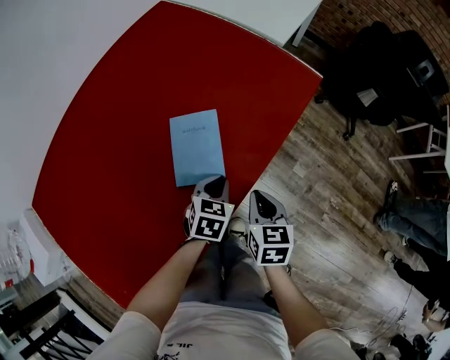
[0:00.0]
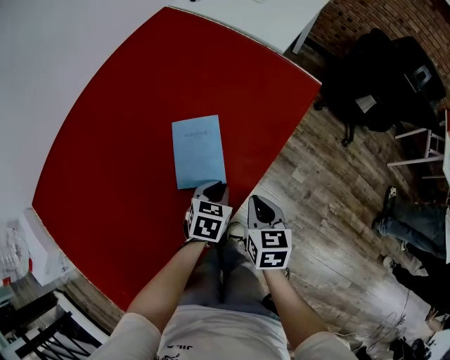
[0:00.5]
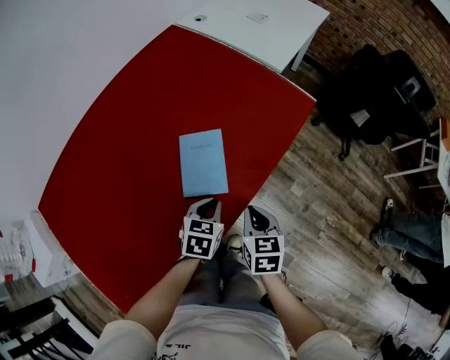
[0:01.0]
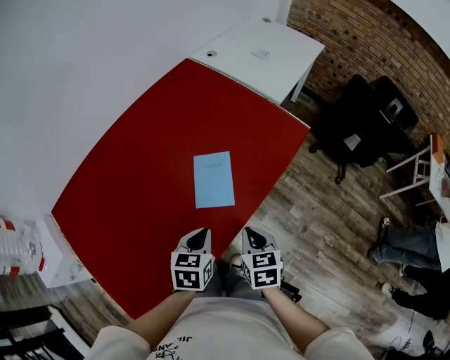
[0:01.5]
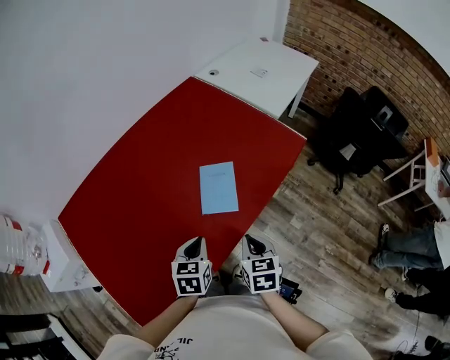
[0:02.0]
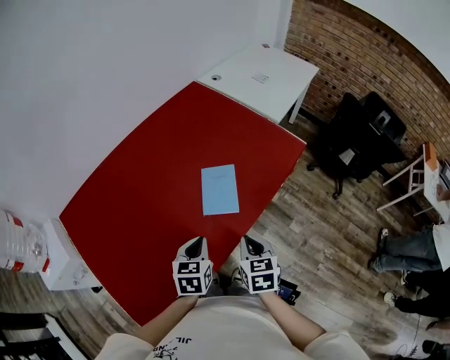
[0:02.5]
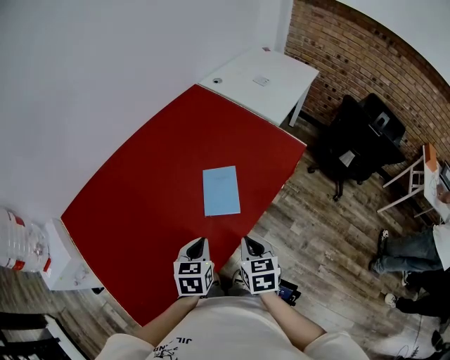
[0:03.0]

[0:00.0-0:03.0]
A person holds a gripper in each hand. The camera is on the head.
0:00.0 to 0:01.5: The right gripper shifts some 10 cm upward and backward. The left gripper goes roughly 20 cm upward, backward and to the left.
0:01.5 to 0:03.0: The right gripper changes place by some 5 cm. Meanwhile the left gripper changes place by some 5 cm.

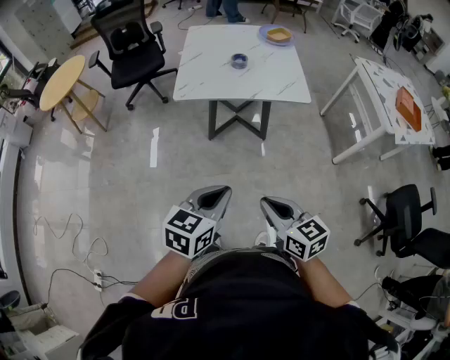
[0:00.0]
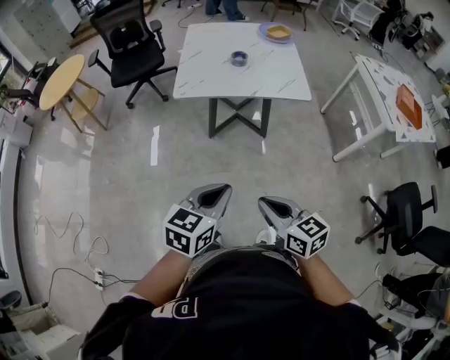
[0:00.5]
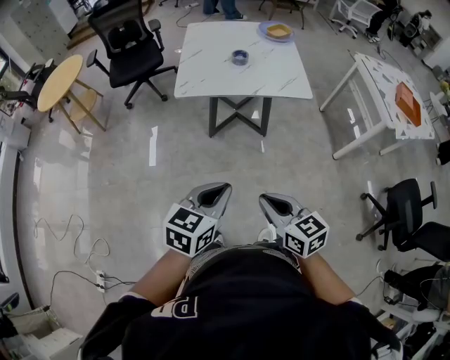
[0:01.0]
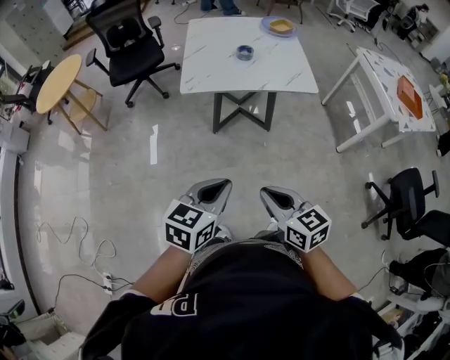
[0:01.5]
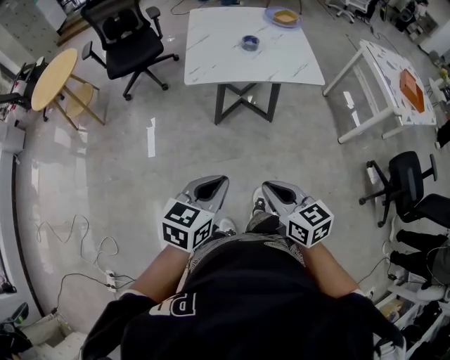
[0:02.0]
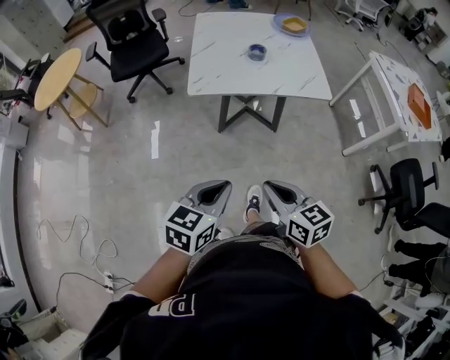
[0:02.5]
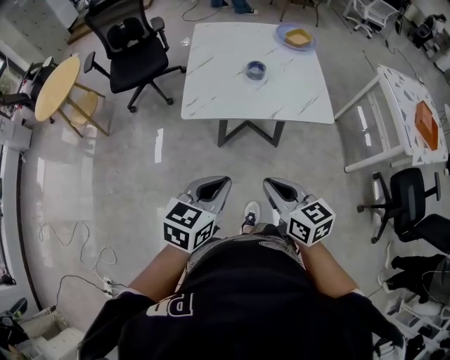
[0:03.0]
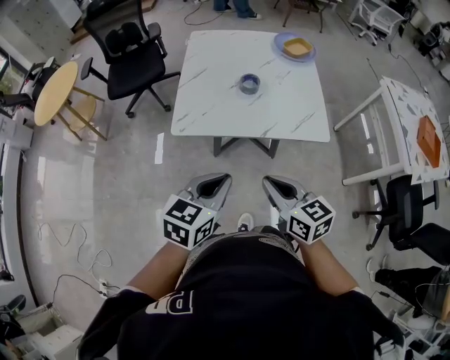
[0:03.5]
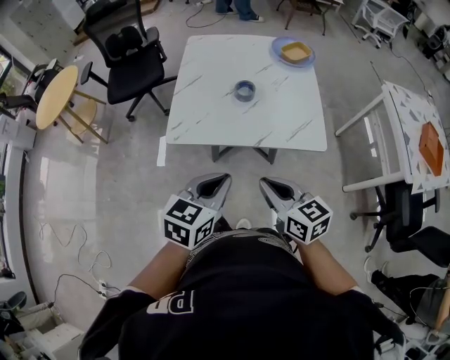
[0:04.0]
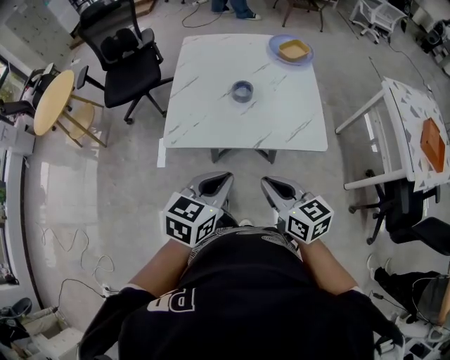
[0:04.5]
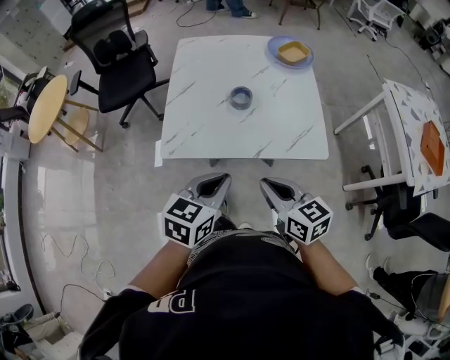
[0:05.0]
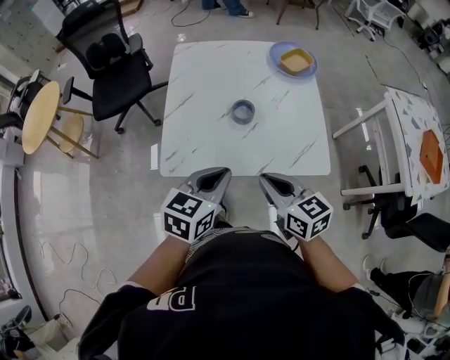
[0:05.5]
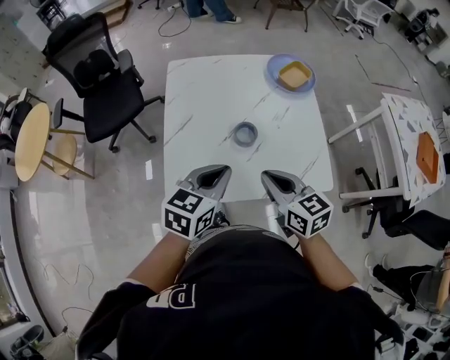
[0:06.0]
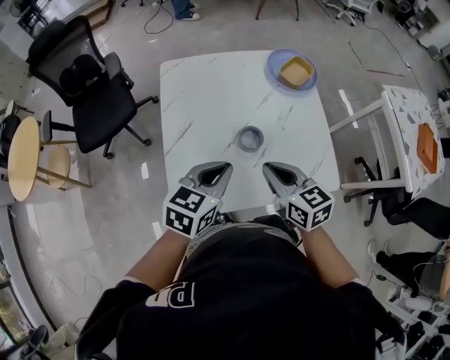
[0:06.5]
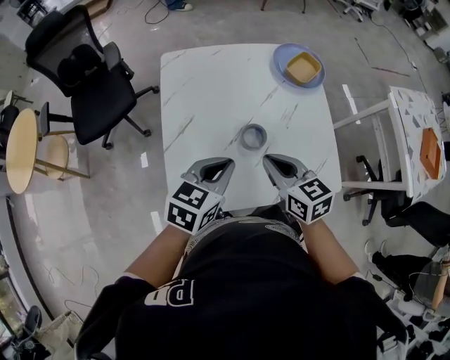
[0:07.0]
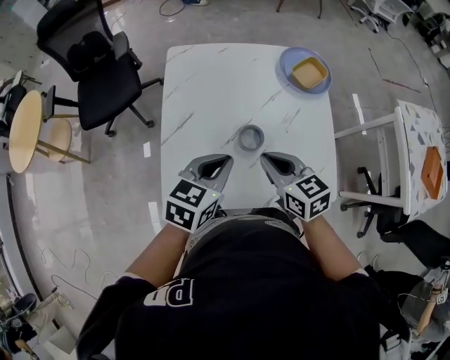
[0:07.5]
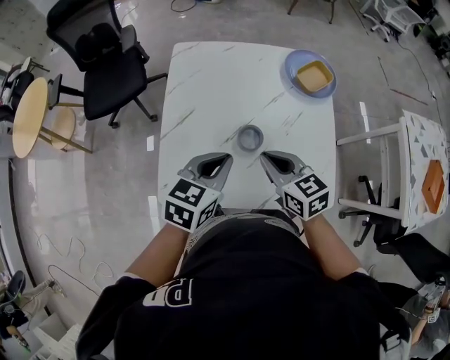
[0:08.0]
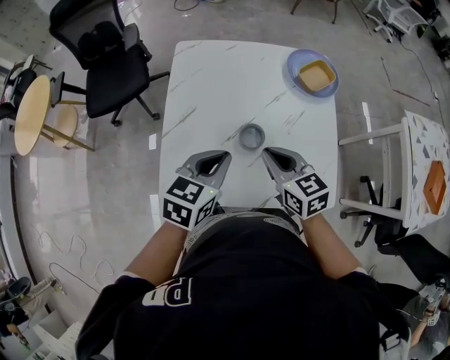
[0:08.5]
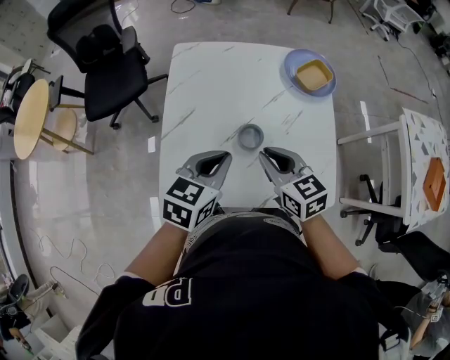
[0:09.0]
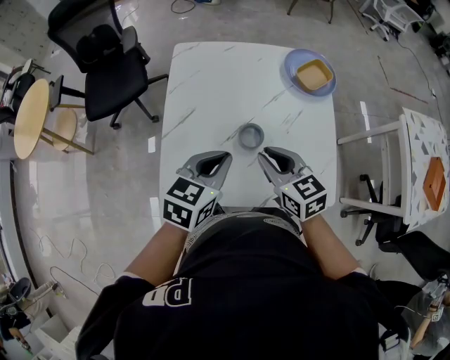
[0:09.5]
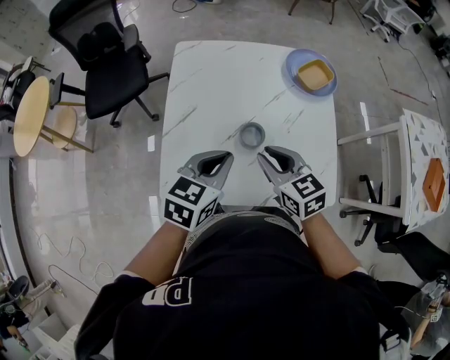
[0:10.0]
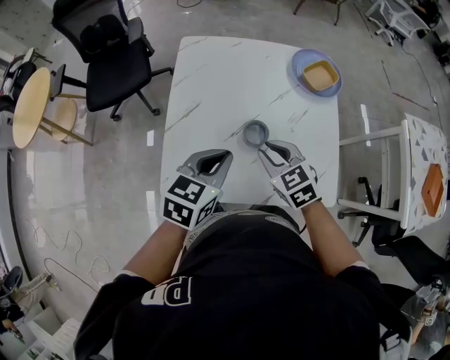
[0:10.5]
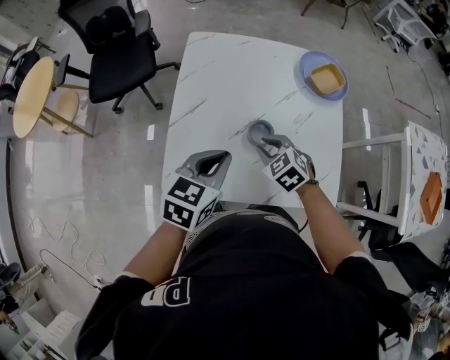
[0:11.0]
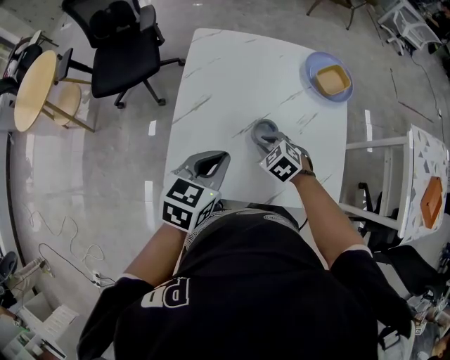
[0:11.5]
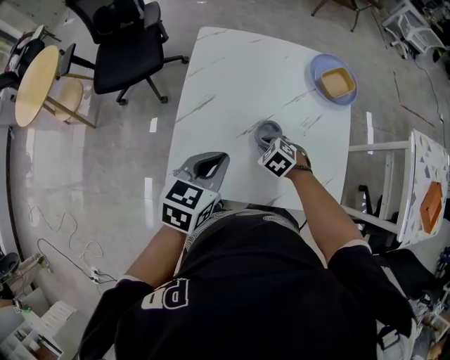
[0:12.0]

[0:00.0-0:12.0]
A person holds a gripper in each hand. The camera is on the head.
0:00.0 to 0:02.0: Both grippers travel together to the left, roughly 10 cm.
0:02.0 to 0:04.0: The left gripper is displaced forward and to the right by approximately 35 cm, while the right gripper travels forward by some 30 cm.
0:04.0 to 0:06.0: The two grippers go about 25 cm forward.
0:06.0 to 0:08.0: The grippers both shift forward by some 10 cm.
0:08.0 to 0:10.0: Both grippers stay about where they are.
0:10.0 to 0:12.0: The right gripper heads downward, covering roughly 20 cm, and tilts its fingers some 40 degrees downward. Meanwhile the left gripper heads to the left, covering roughly 5 cm.

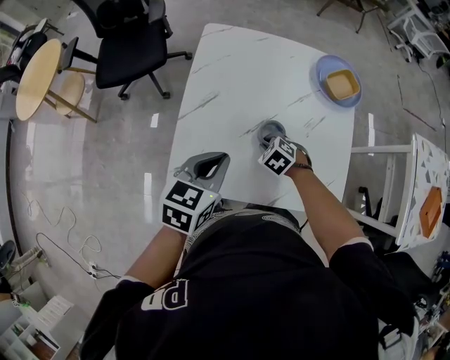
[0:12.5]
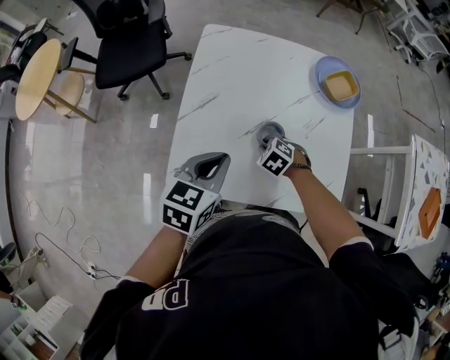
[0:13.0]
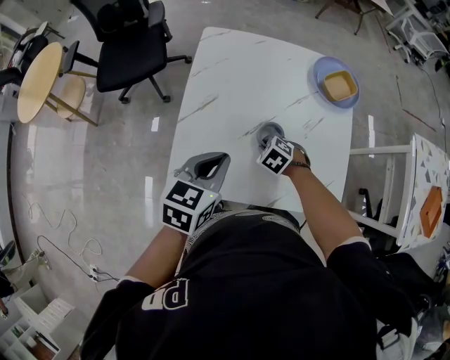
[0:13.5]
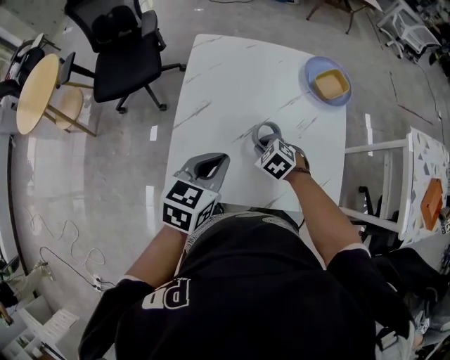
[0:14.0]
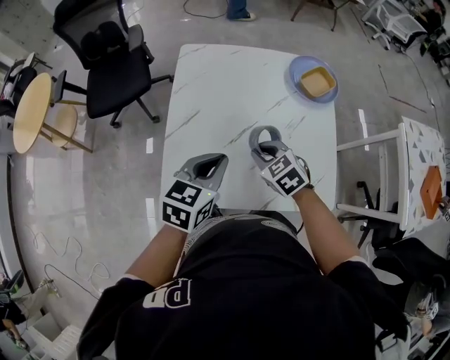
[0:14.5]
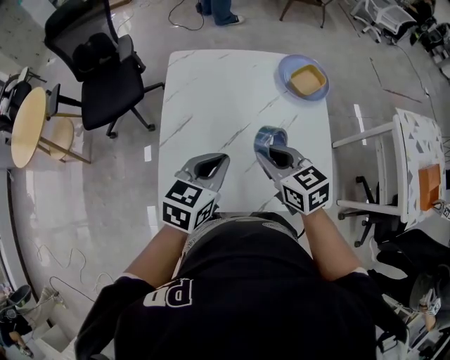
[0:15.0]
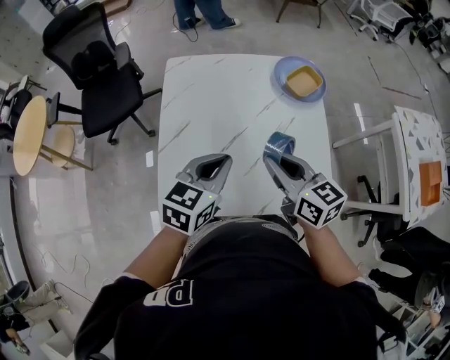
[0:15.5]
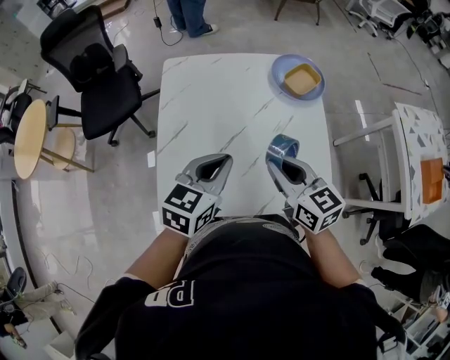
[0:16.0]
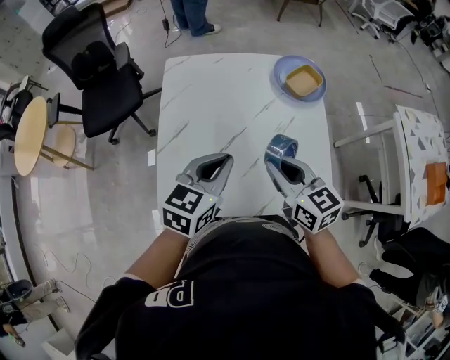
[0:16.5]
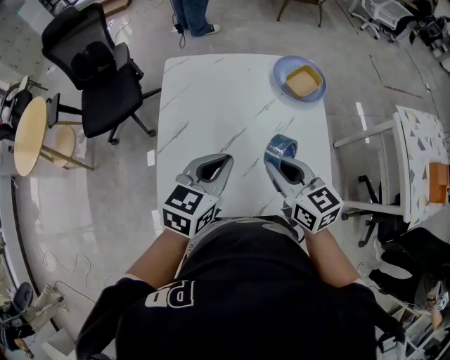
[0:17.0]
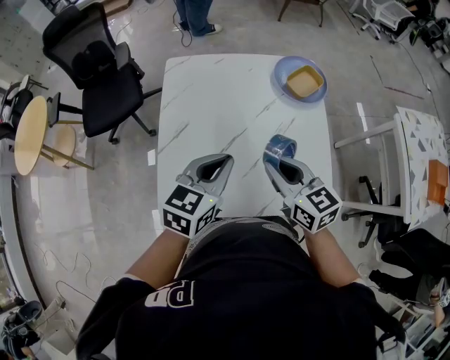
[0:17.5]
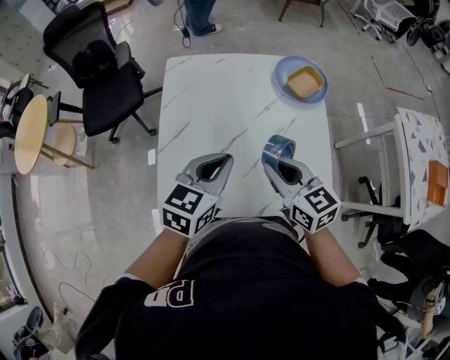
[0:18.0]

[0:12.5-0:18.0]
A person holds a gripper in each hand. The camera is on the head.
0:12.5 to 0:14.5: The right gripper moves upward, about 15 cm, and changes its angle by approximately 20 degrees.
0:14.5 to 0:16.0: The right gripper travels upward and to the right by roughly 15 cm, and points its fingers some 30 degrees further upward, while the left gripper shifts some 5 cm to the right.
0:16.0 to 0:18.0: The grippers stay close to where they were, moving slightly.

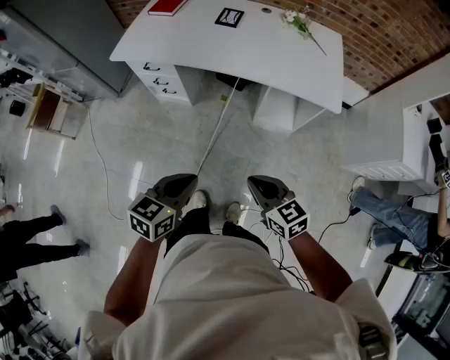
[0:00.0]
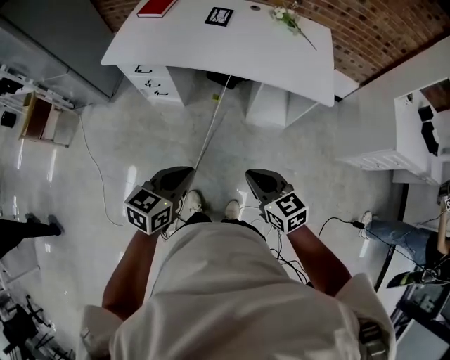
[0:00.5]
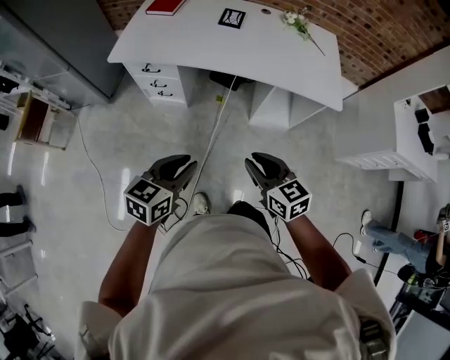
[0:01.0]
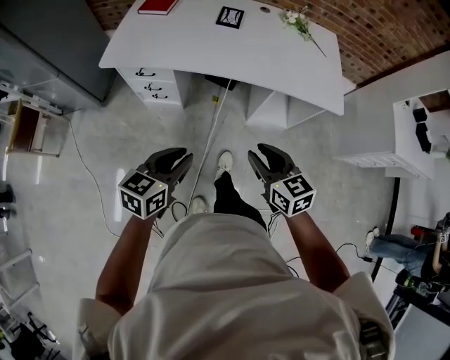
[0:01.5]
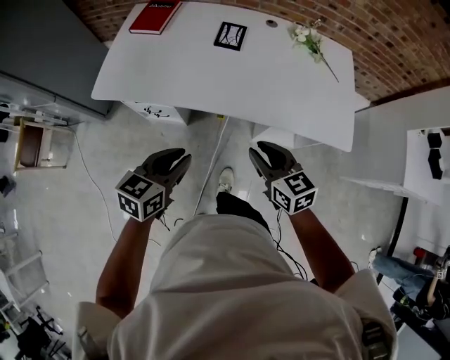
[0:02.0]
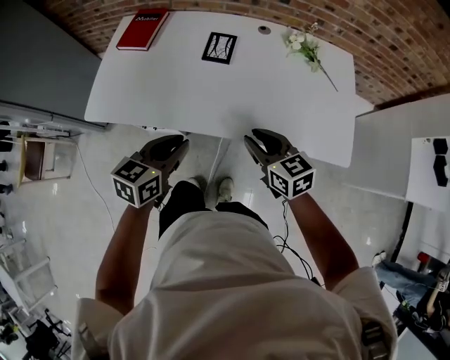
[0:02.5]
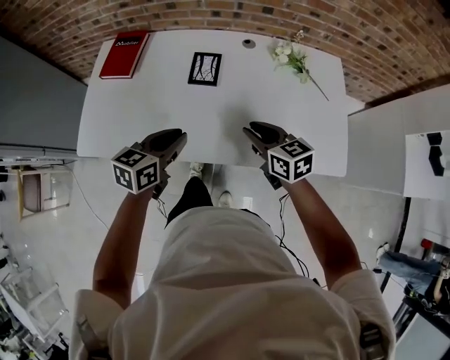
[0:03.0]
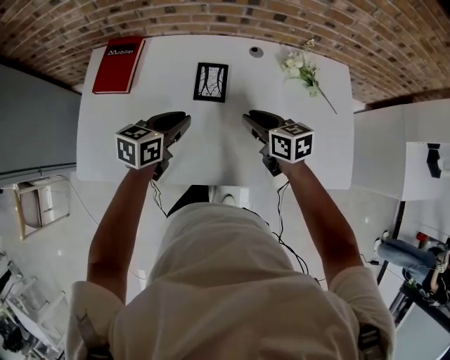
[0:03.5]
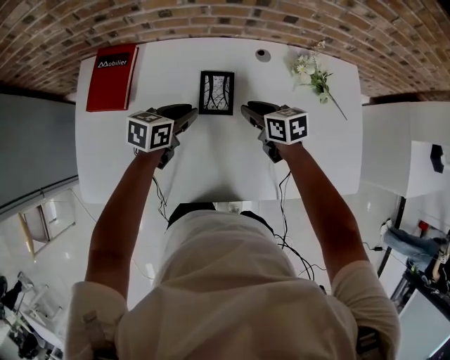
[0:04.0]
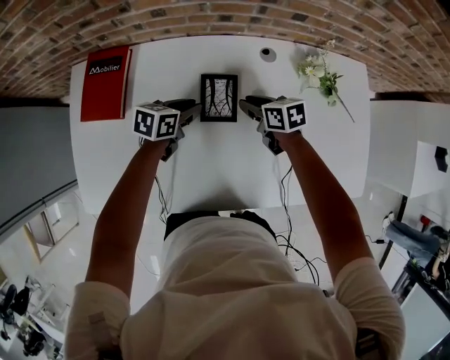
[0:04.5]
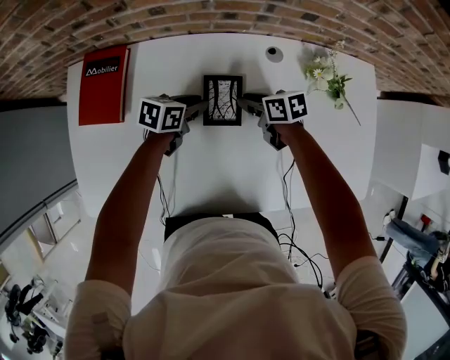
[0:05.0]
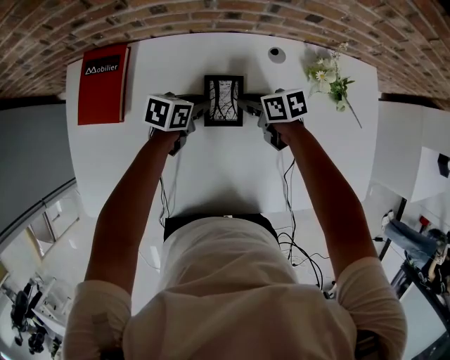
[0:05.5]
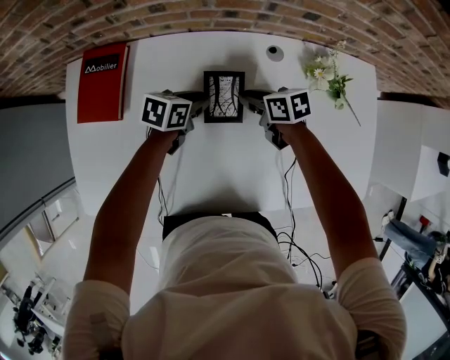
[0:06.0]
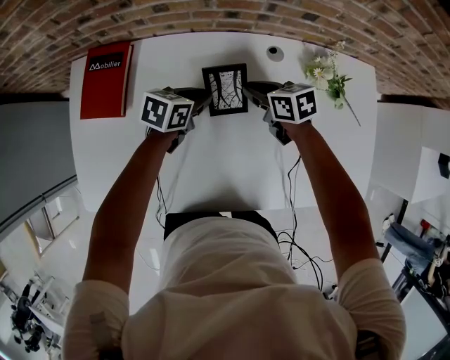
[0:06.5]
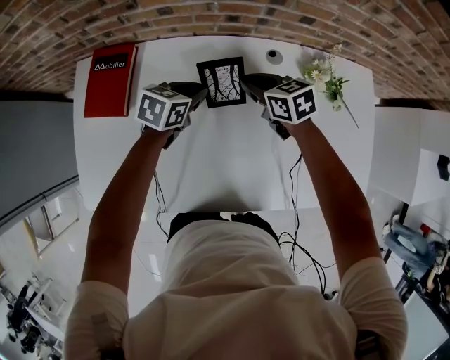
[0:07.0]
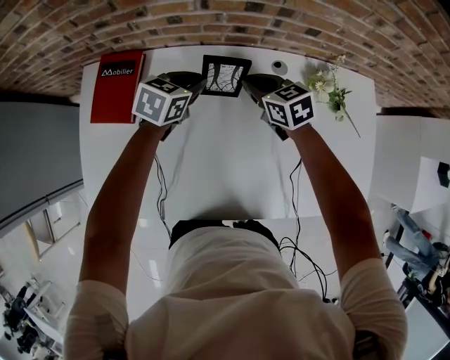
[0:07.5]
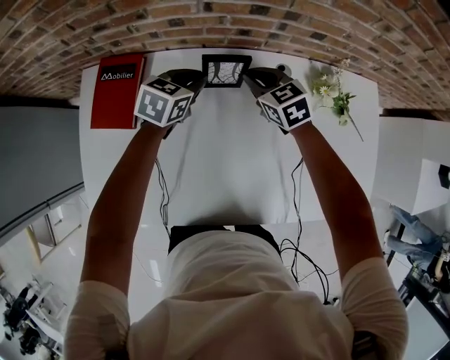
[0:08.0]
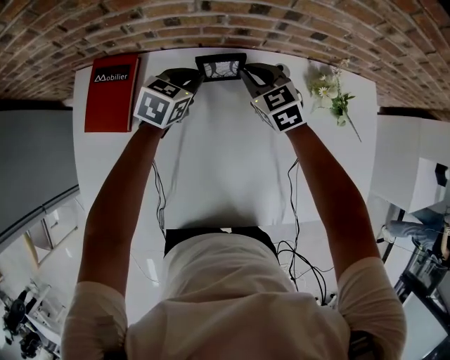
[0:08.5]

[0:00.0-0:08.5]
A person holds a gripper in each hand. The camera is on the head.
0:00.0 to 0:02.0: The two grippers go about 30 cm forward. The right gripper opens.
0:02.0 to 0:04.0: The two grippers travel together, forward, some 50 cm. The left gripper changes its angle by approximately 20 degrees; the right gripper swivels roughly 20 degrees.
0:04.0 to 0:06.5: The right gripper reaches approximately 10 cm downward, then returns, while the left gripper ends up approximately 10 cm from where it was.
0:06.5 to 0:08.5: Both grippers move forward, approximately 10 cm. The left gripper rotates some 20 degrees. Meanwhile the right gripper turns by about 40 degrees.
